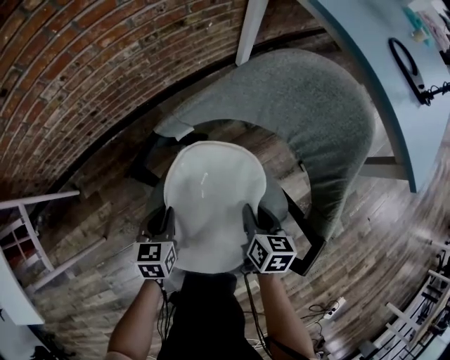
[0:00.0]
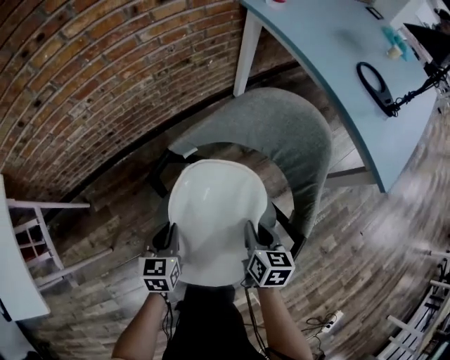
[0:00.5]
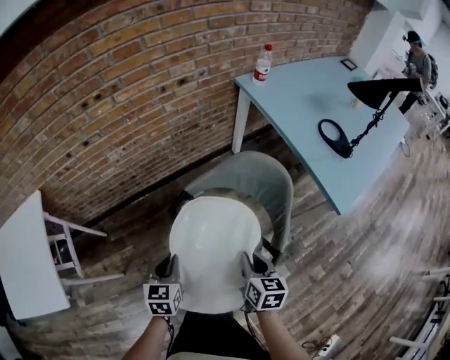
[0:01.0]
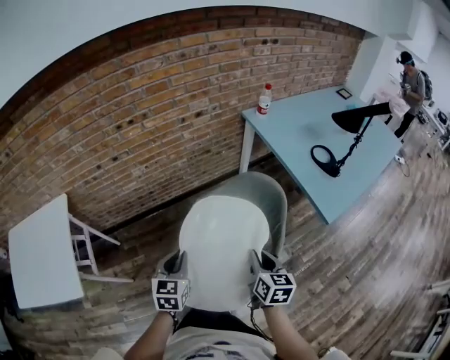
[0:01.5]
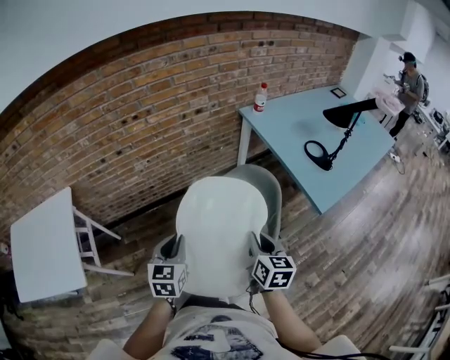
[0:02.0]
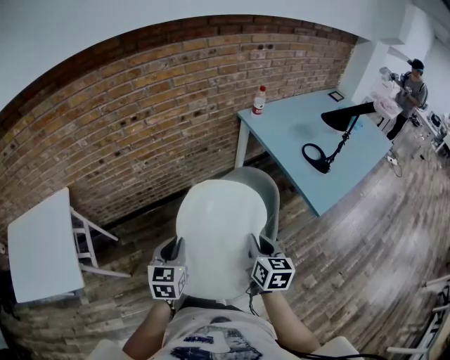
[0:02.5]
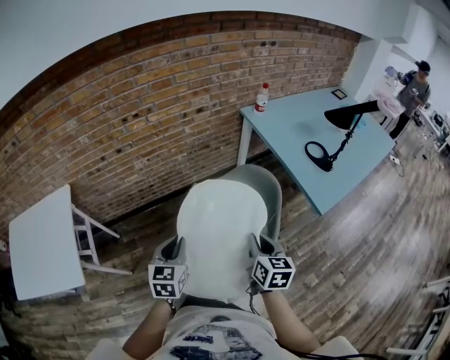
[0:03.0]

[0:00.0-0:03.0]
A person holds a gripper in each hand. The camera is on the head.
0:00.0 to 0:01.5: Both grippers move upward, approximately 40 cm.
0:01.5 to 0:03.0: The left gripper changes place by about 5 cm. The right gripper travels upward by some 5 cm.

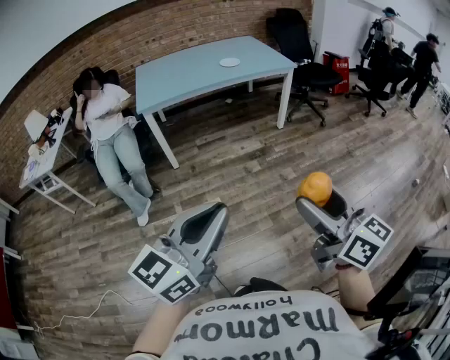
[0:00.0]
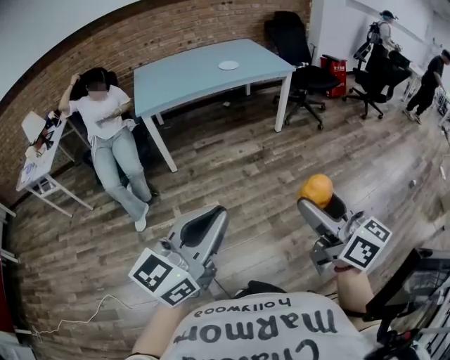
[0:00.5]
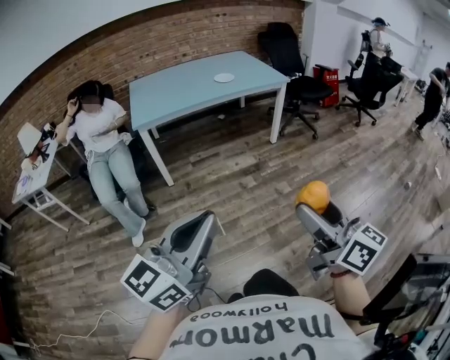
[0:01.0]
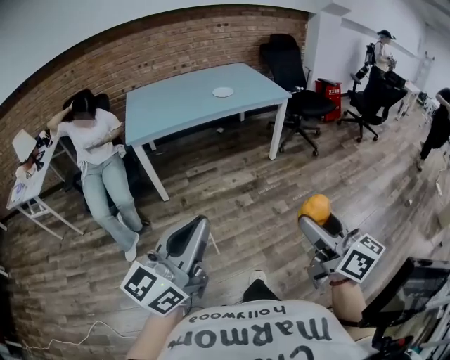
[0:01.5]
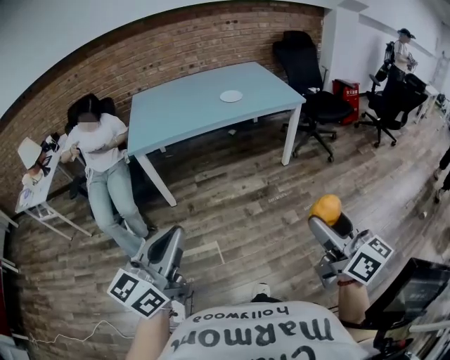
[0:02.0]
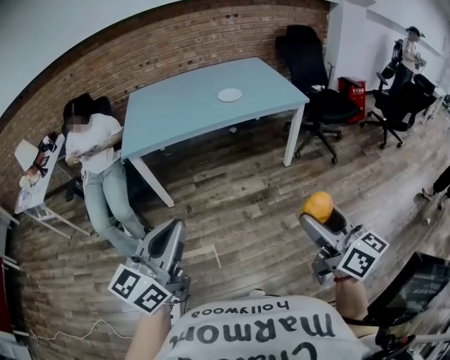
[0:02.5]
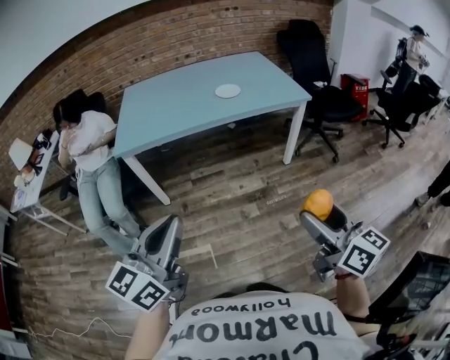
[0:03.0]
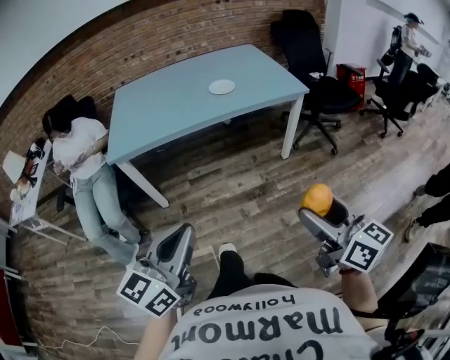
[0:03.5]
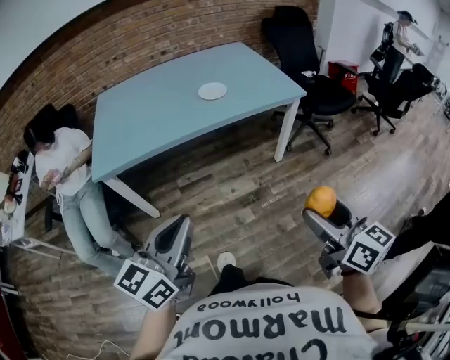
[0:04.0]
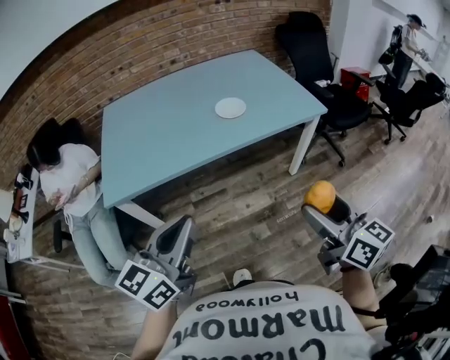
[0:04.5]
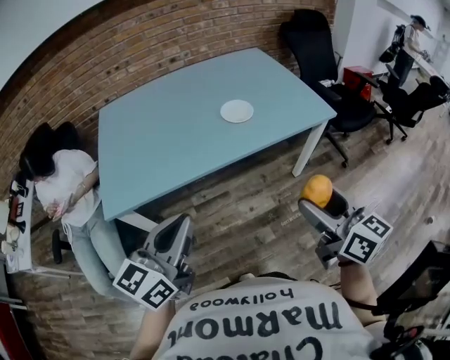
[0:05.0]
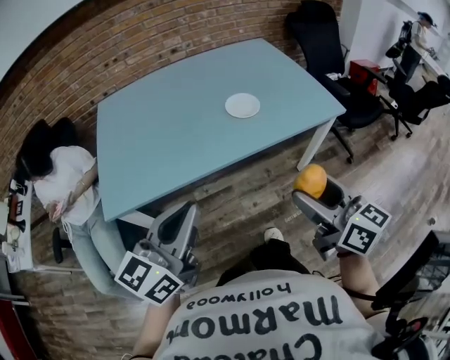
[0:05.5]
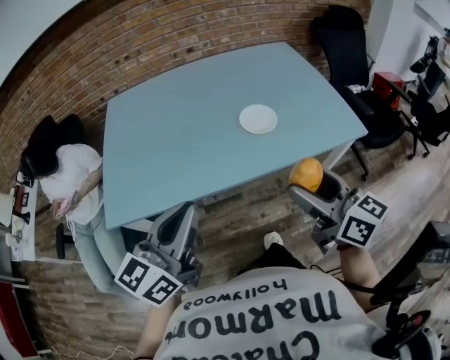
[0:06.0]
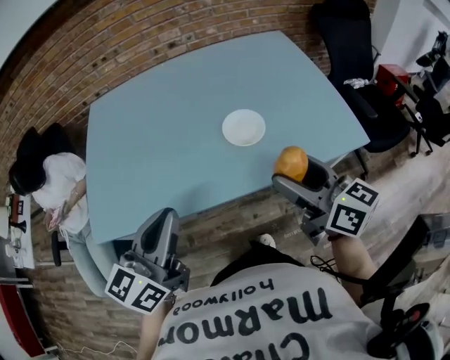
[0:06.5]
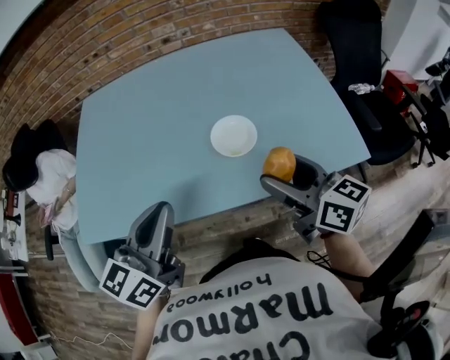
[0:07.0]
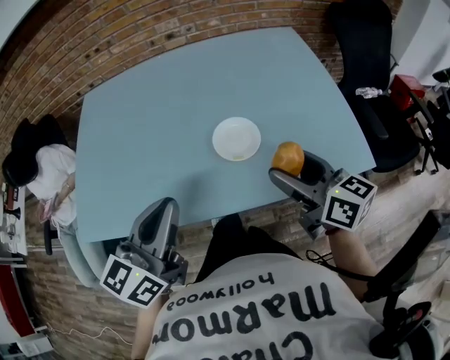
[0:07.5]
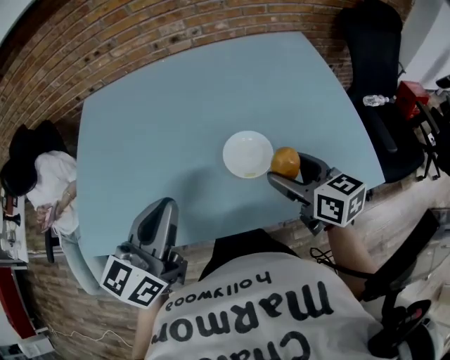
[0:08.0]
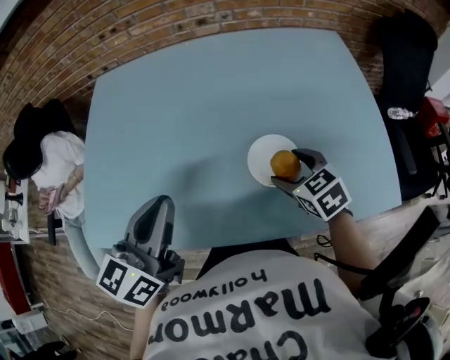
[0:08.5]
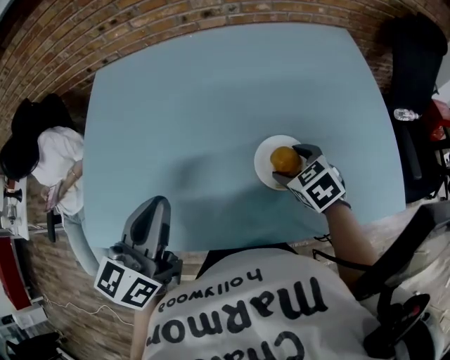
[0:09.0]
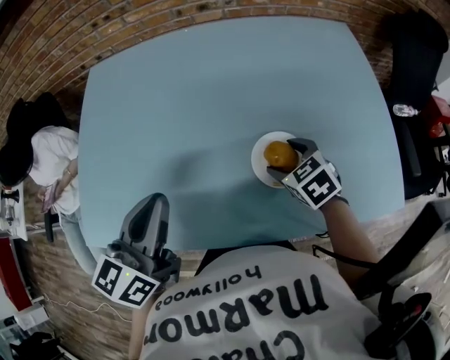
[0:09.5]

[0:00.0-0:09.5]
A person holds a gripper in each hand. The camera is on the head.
0:00.0 to 0:02.0: Both grippers travel together forward, approximately 25 cm.
0:02.0 to 0:04.0: Both grippers travel together forward, some 30 cm.
0:04.0 to 0:05.5: Both grippers travel together forward and to the left, roughly 25 cm.
0:05.5 to 0:07.5: The right gripper heads forward, covering about 35 cm; the left gripper is displaced forward and to the right by about 30 cm.
0:07.5 to 0:09.5: The left gripper shifts about 15 cm forward and to the left. Meanwhile the right gripper heads forward and downward, covering some 25 cm, and tips its fingers downward by roughly 40 degrees.

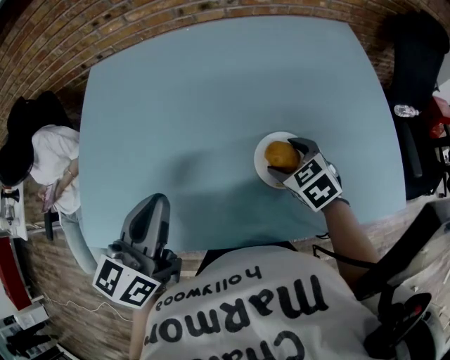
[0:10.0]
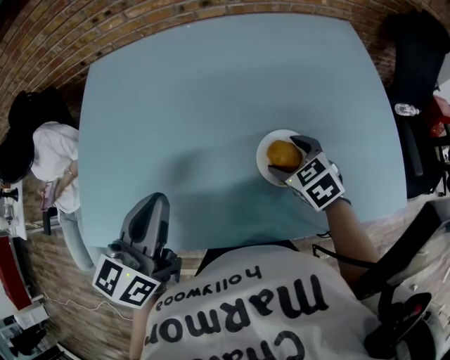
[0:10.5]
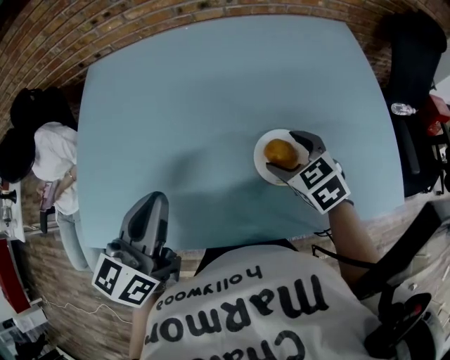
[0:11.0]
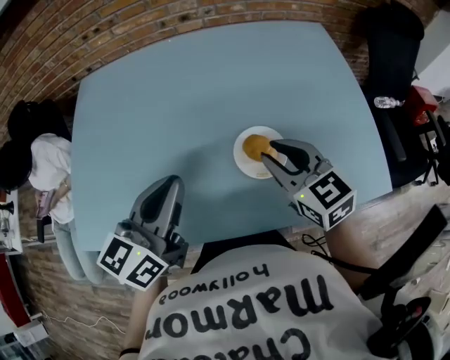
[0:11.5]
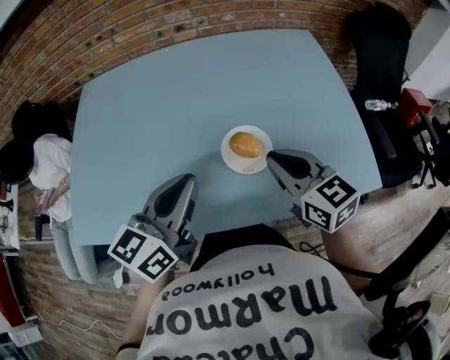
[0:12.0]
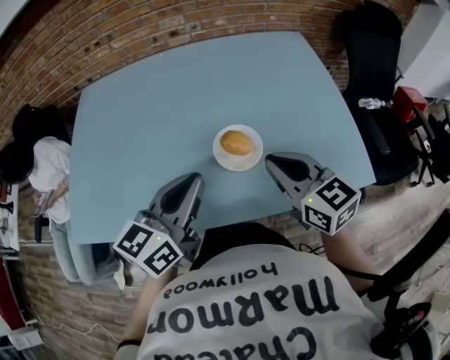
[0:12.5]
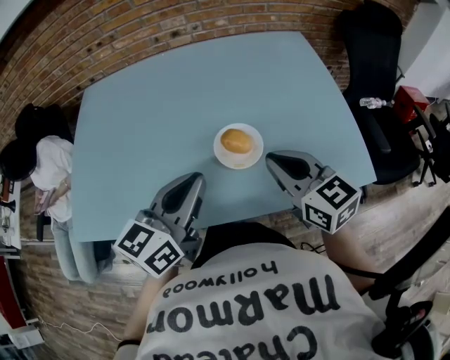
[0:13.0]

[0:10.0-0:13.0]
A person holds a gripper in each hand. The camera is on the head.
0:10.0 to 0:11.5: The right gripper travels upward by approximately 15 cm, rotates roughly 30 degrees, and closes. The left gripper heads to the right, covering roughly 5 cm.
0:11.5 to 0:13.0: The right gripper shifts roughly 10 cm backward and to the right. The left gripper heads to the right and backward, covering about 10 cm.

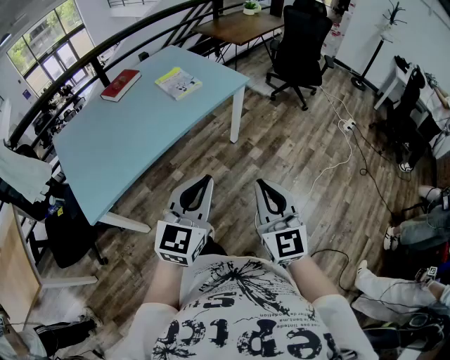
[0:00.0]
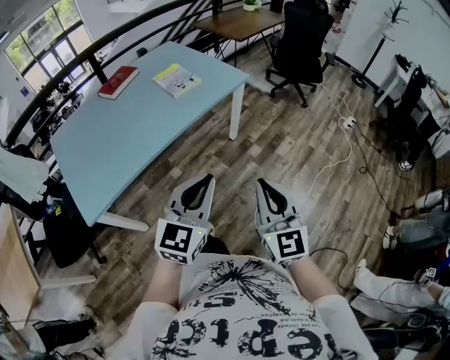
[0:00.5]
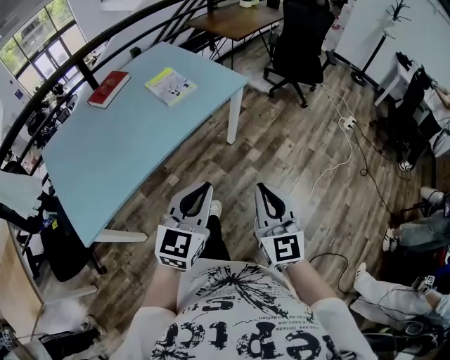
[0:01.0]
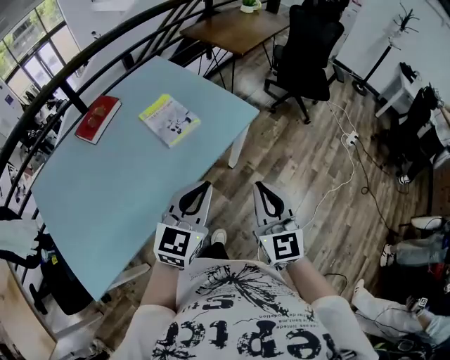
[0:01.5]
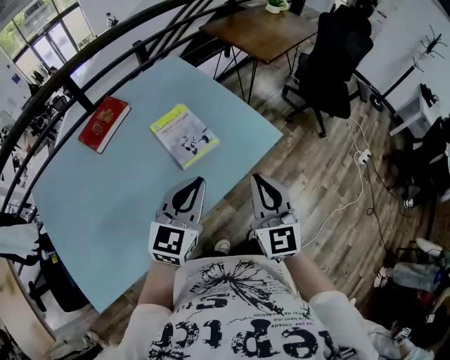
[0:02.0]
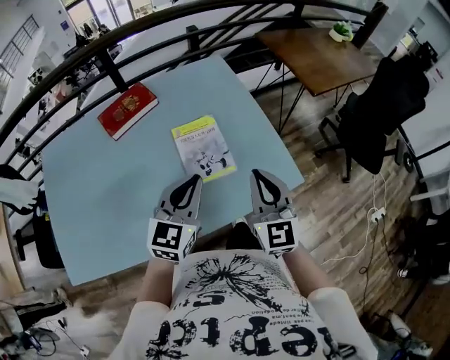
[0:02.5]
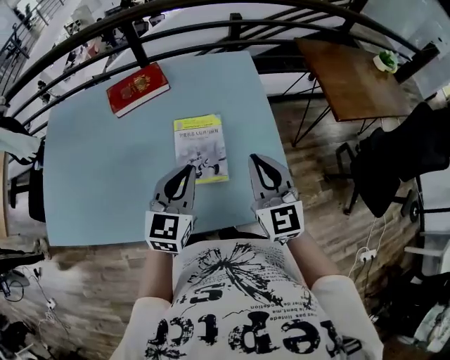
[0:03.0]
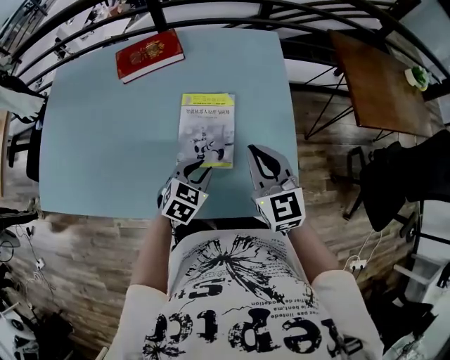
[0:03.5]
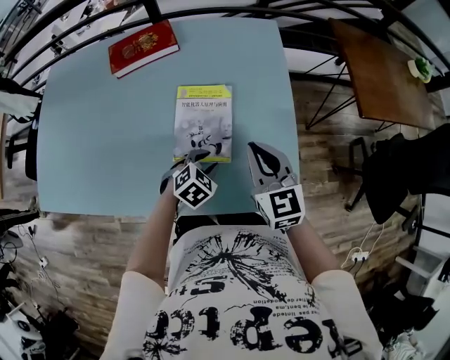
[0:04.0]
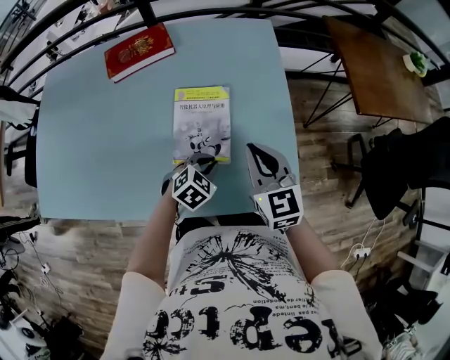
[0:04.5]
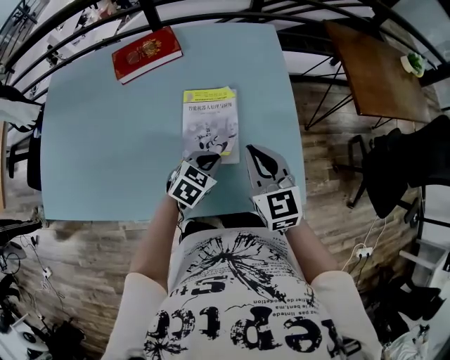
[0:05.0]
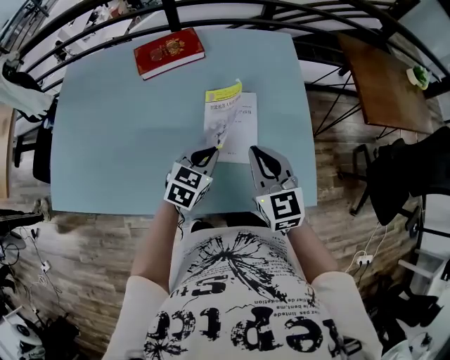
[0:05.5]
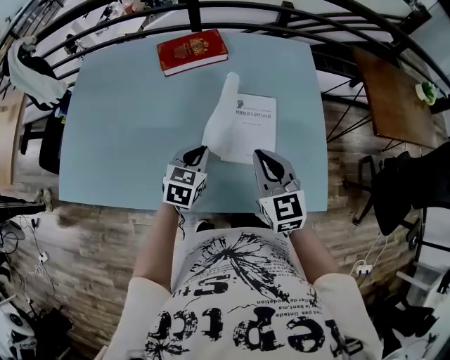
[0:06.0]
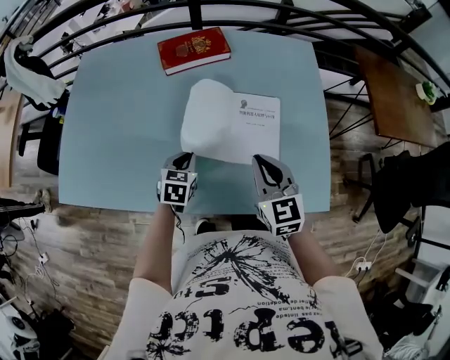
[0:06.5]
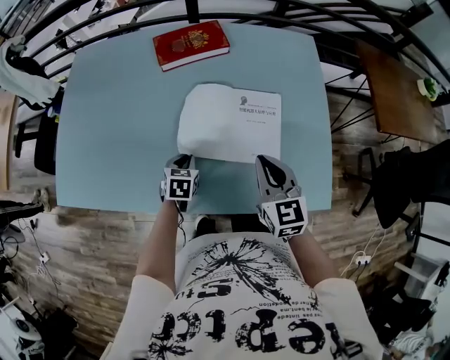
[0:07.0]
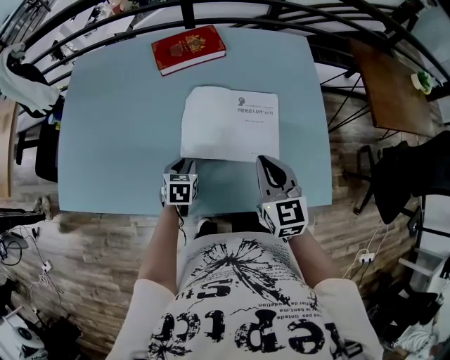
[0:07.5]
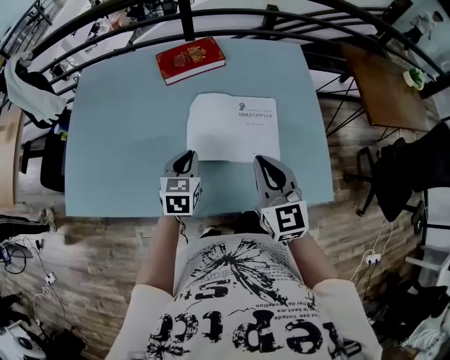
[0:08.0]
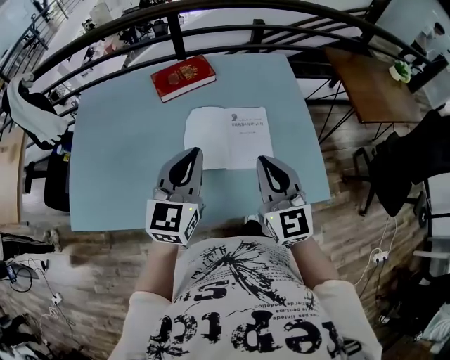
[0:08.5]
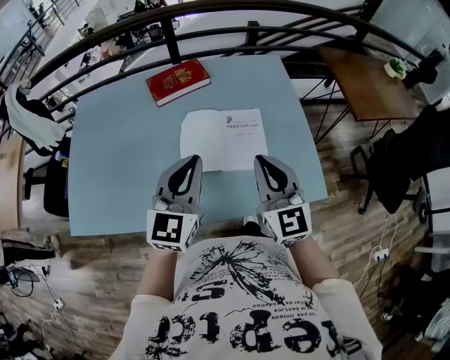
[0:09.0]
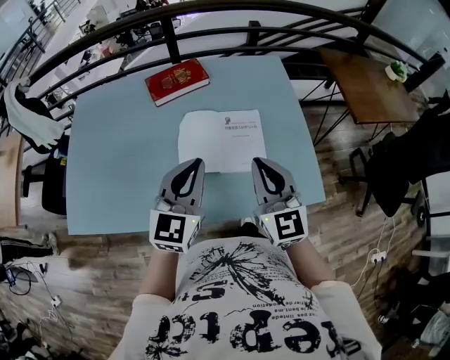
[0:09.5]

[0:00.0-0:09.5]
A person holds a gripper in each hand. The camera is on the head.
0:00.0 to 0:02.0: The two grippers travel together, forward, about 50 cm.
0:02.0 to 0:04.0: The left gripper moves downward, approximately 30 cm, angles its fingers downward, by some 50 degrees, and opens; the right gripper moves roughly 35 cm, and turns by some 50 degrees.
0:04.0 to 0:05.5: The right gripper moves to the left, approximately 10 cm. Meanwhile the left gripper shifts about 15 cm upward and to the left, swivels about 30 degrees, and closes its fingers.
0:05.5 to 0:07.5: The left gripper is displaced to the left and downward by approximately 20 cm, changes its angle by approximately 30 degrees, and opens. Meanwhile the right gripper heads to the left, covering about 5 cm.
0:07.5 to 0:09.5: The right gripper heads upward, covering about 10 cm; the left gripper travels upward by some 30 cm, tips its fingers upward by about 50 degrees, and closes its fingers.

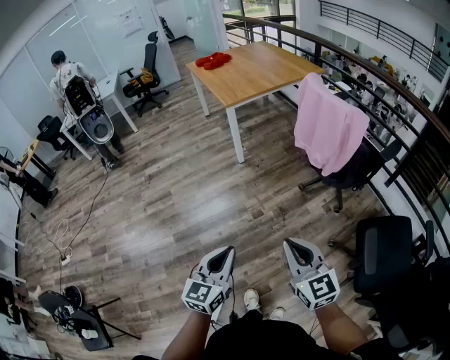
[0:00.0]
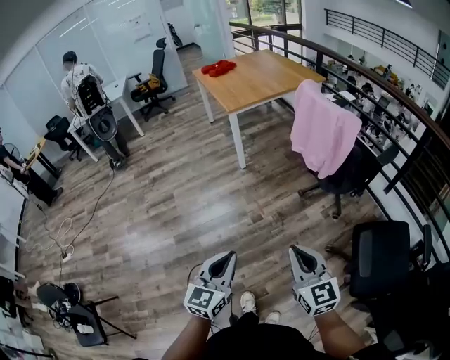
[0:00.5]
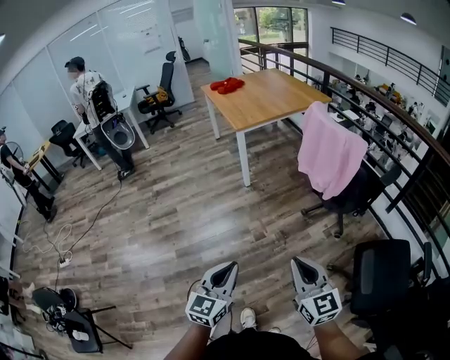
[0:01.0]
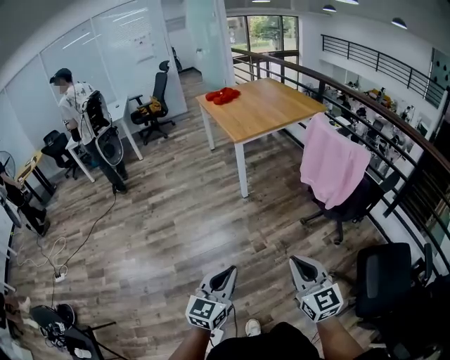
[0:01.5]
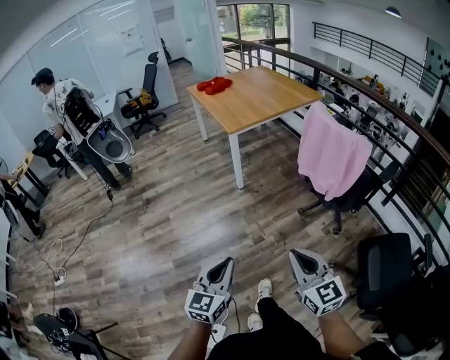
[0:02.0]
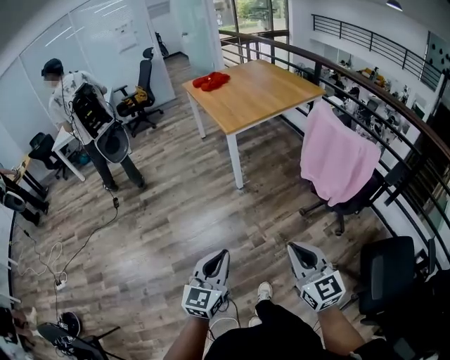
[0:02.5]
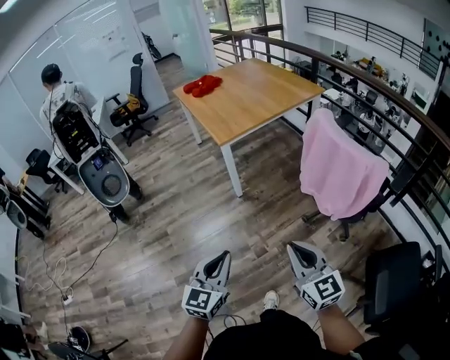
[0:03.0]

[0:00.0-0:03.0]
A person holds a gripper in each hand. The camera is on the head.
0:01.5 to 0:03.0: The two grippers go approximately 25 cm forward.
